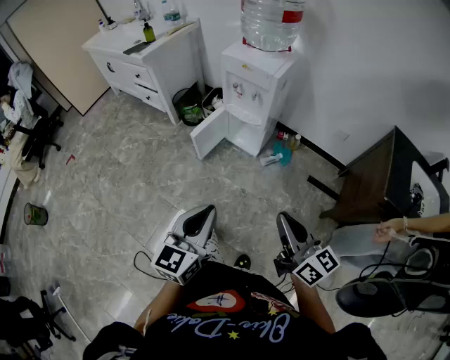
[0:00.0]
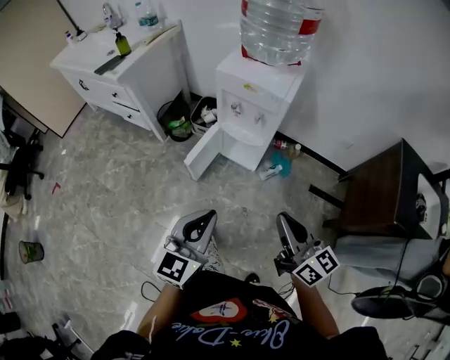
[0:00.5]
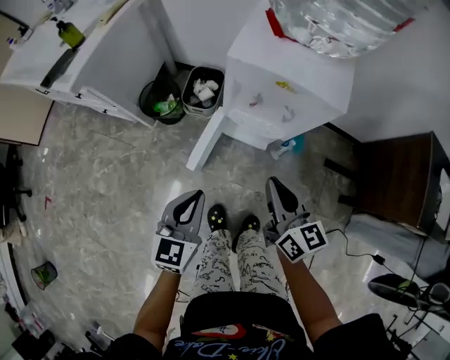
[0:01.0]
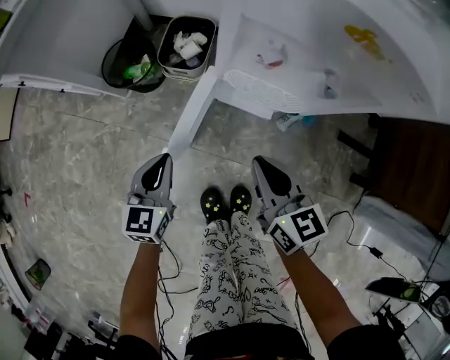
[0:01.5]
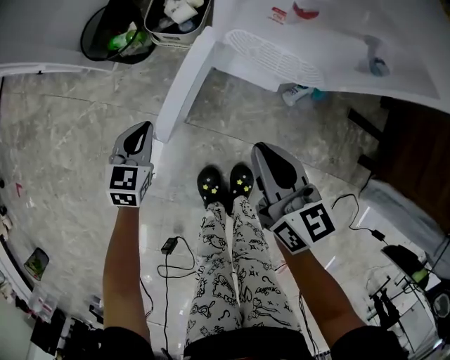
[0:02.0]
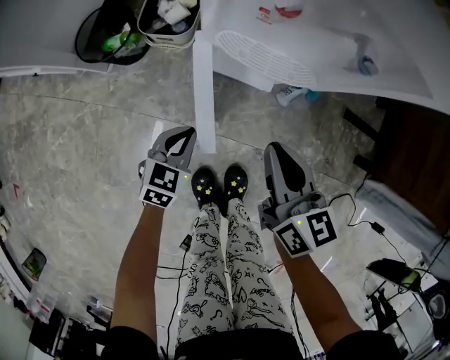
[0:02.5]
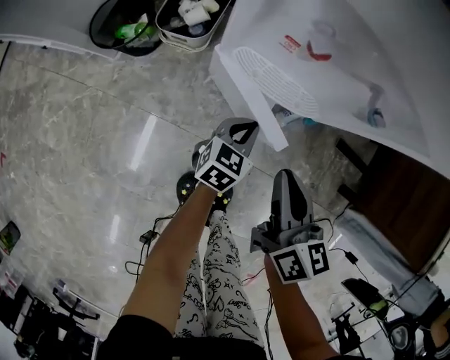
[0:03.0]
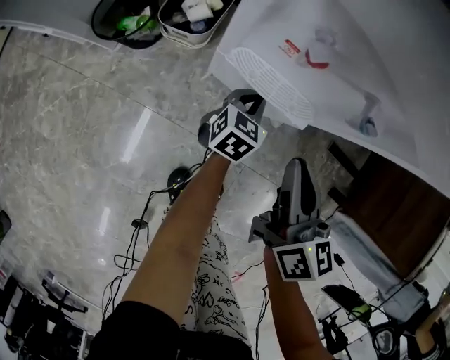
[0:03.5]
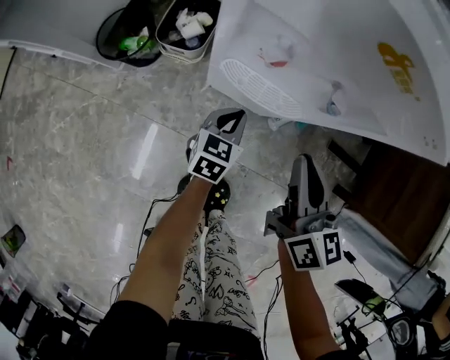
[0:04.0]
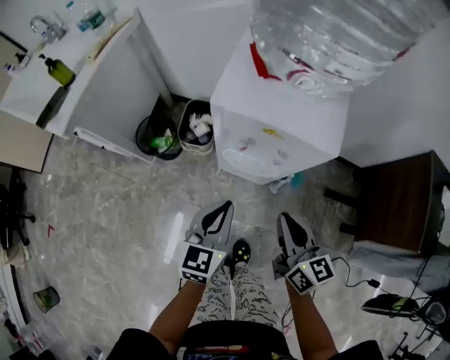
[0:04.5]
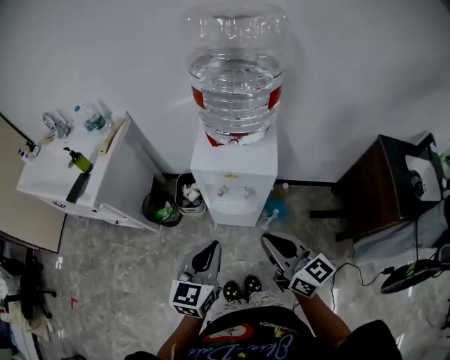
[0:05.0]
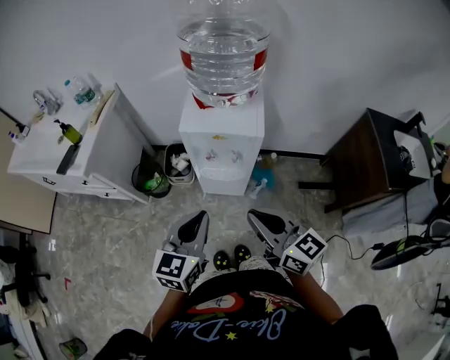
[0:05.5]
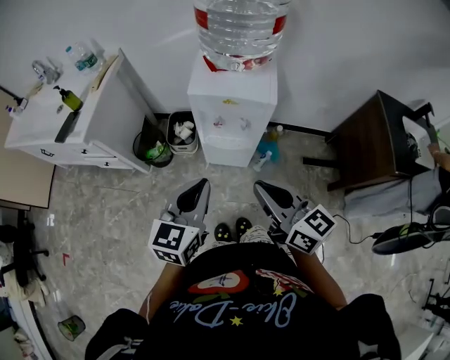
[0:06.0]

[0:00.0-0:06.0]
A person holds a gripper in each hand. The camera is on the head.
0:00.0 to 0:02.0: The two grippers travel together, forward and to the left, about 50 cm. Both grippers travel together downward, roughly 50 cm. The right gripper swivels approximately 30 degrees. Meanwhile the left gripper tilts its fingers approximately 30 degrees downward.
0:02.0 to 0:04.0: The left gripper heads to the right and forward, covering approximately 25 cm, while the right gripper travels to the right, upward and forward by about 15 cm.
0:04.0 to 0:06.0: Both grippers travel together upward and backward, some 50 cm. The right gripper rotates about 20 degrees, while the left gripper swivels roughly 20 degrees.

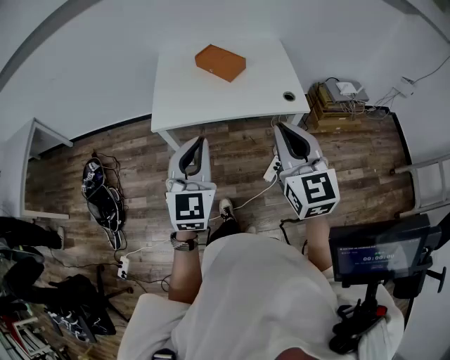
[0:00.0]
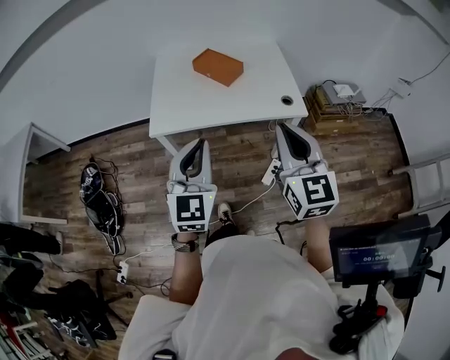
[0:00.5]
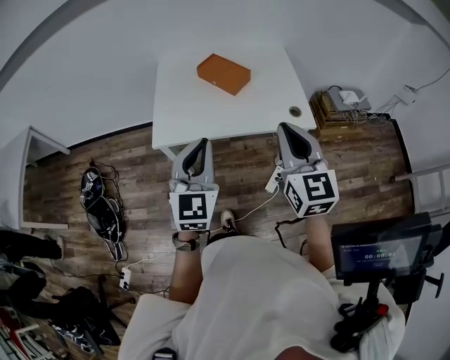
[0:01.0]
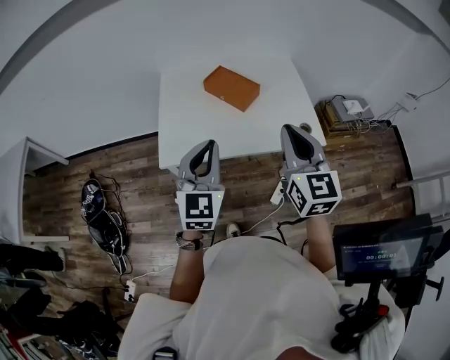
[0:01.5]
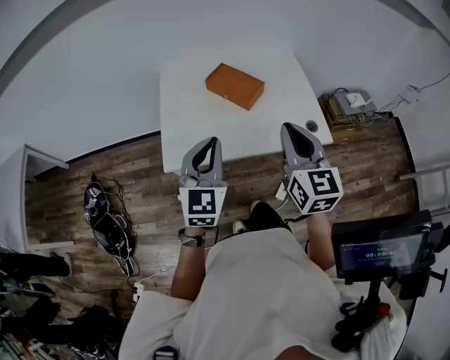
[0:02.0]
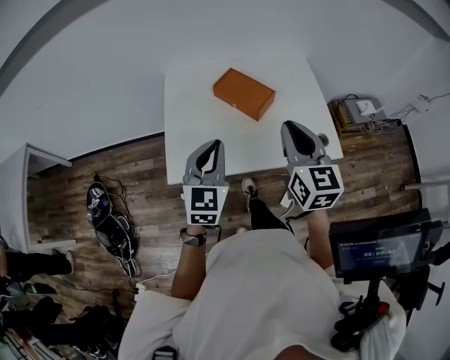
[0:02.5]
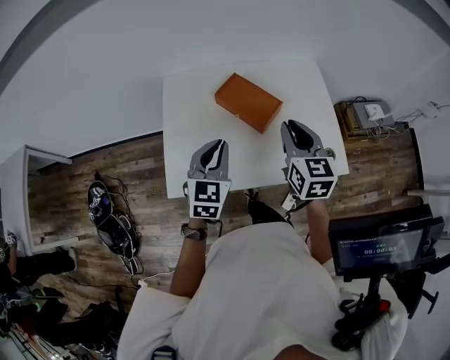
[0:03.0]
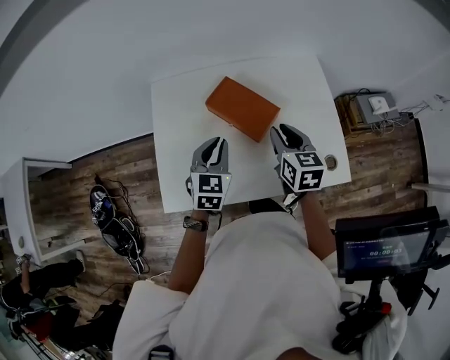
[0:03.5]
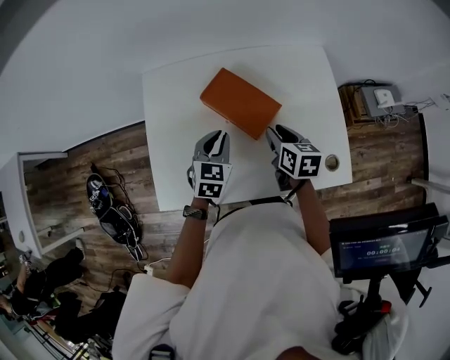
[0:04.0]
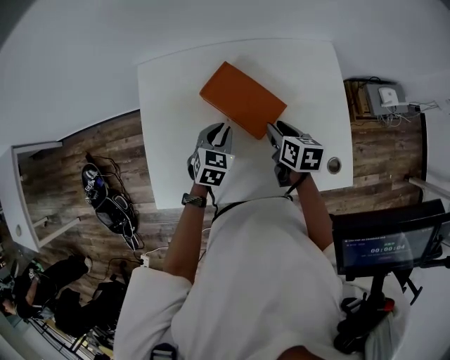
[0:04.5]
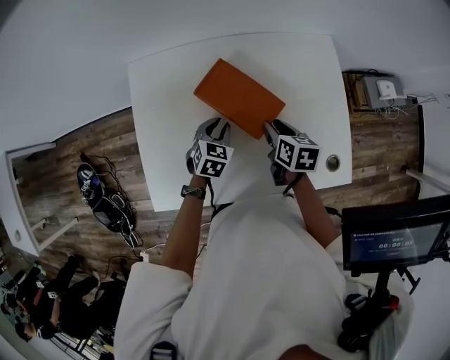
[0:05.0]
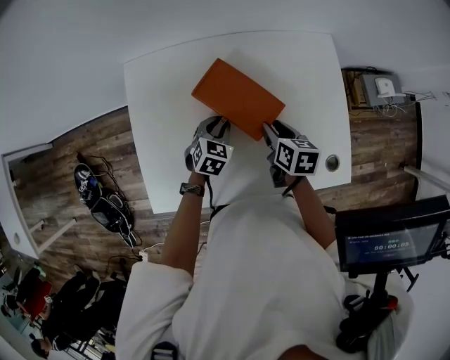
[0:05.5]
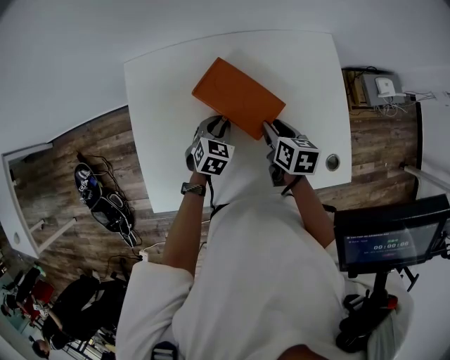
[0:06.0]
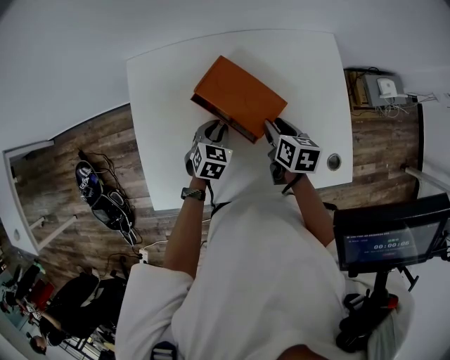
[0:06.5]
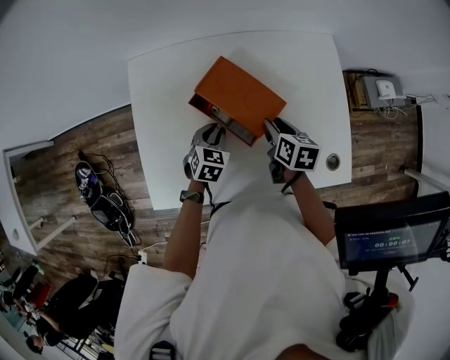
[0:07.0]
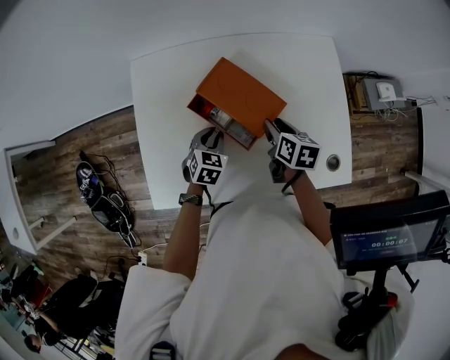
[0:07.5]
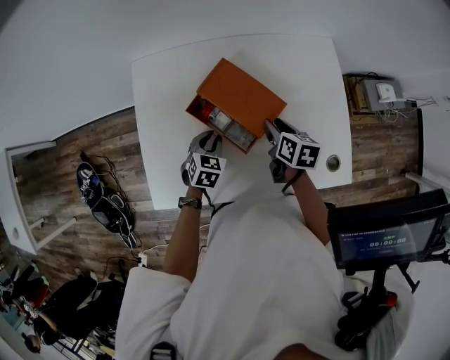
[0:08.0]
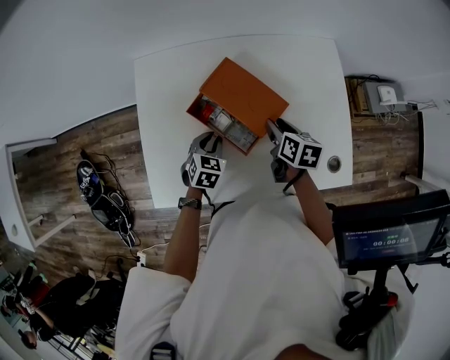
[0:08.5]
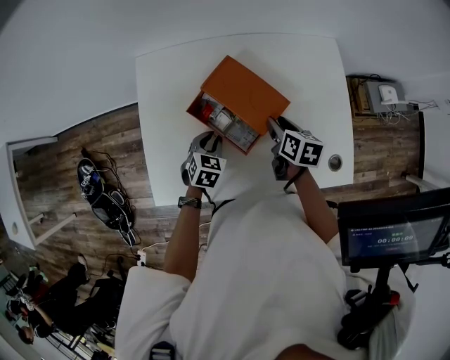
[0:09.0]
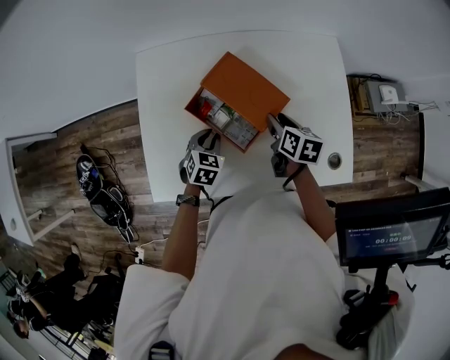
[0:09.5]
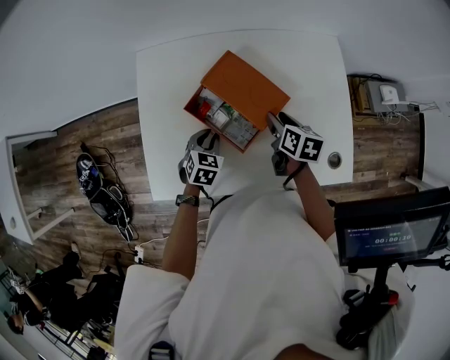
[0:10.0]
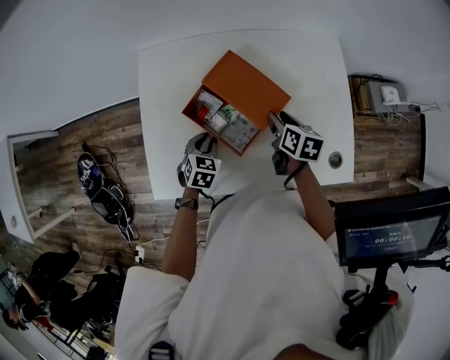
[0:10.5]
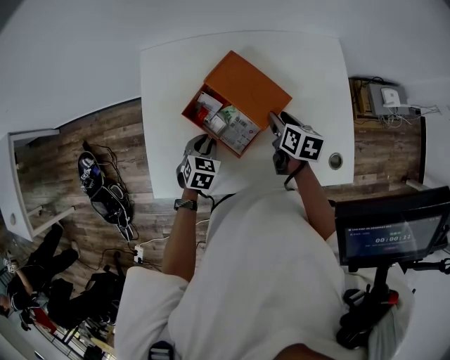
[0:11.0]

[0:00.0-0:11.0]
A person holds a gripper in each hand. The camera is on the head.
0:00.0 to 0:02.0: Both grippers move forward, roughly 20 cm.
0:02.0 to 0:03.5: The grippers both shift forward and downward by roughly 30 cm. The left gripper rotates roughly 20 degrees, while the right gripper changes its angle by approximately 30 degrees, and opens.
0:03.5 to 0:05.5: Both grippers move downward, approximately 15 cm. The left gripper swivels roughly 20 degrees. The right gripper changes its angle by roughly 20 degrees.
0:05.5 to 0:07.5: There are only small adjustments of the grippers.
0:07.5 to 0:11.0: There are only small adjustments of the grippers.

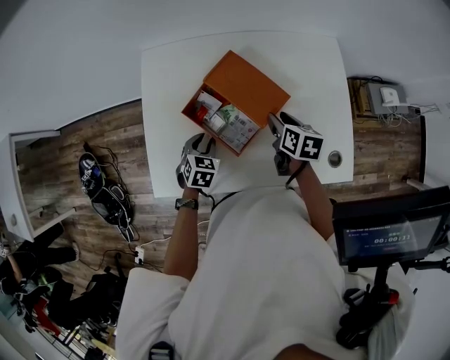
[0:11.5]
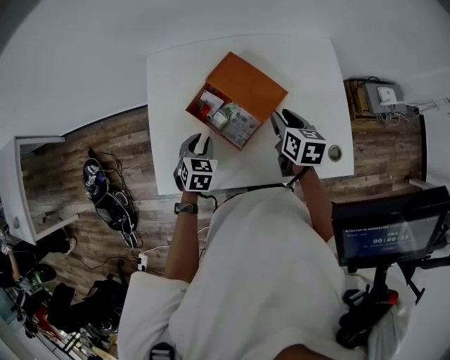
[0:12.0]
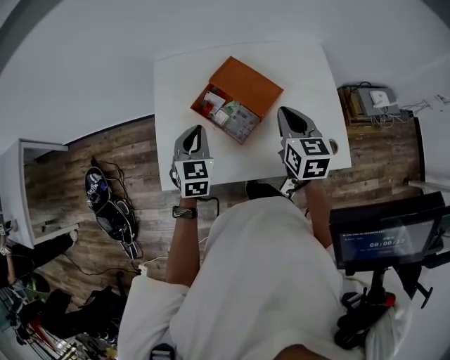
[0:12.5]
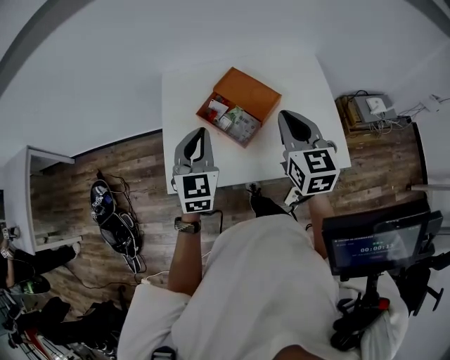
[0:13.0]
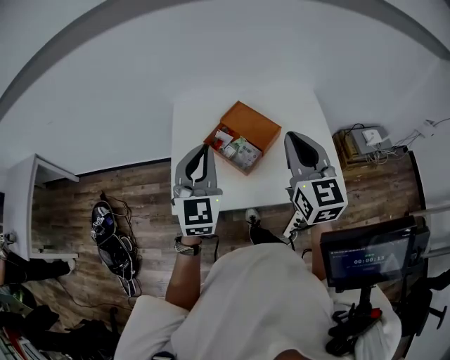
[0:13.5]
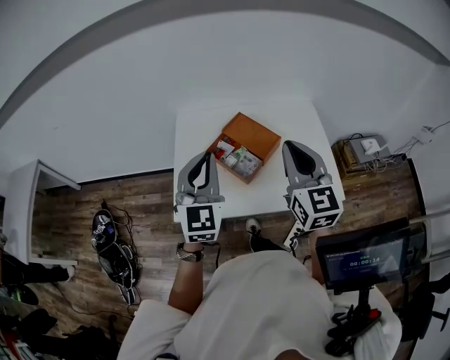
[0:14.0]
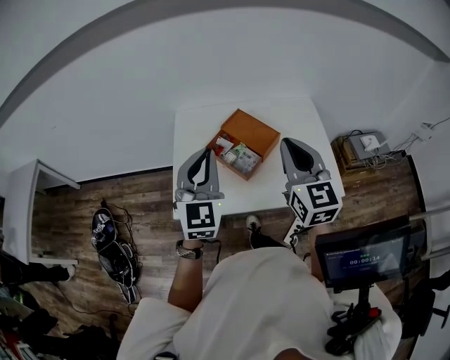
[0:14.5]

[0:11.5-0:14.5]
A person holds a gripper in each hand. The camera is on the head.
0:11.5 to 0:13.0: The left gripper moves upward, some 30 cm, tilts its fingers about 40 degrees upward, and closes its fingers. Meanwhile the right gripper travels upward and backward by approximately 30 cm, angles its fingers upward, by approximately 30 degrees, and closes up.
0:13.0 to 0:14.5: Both grippers move upward, roughly 10 cm.

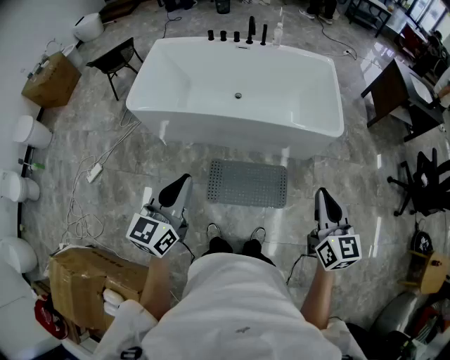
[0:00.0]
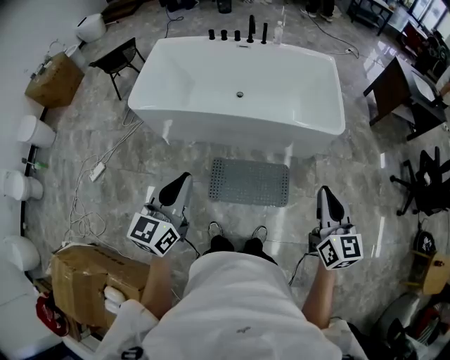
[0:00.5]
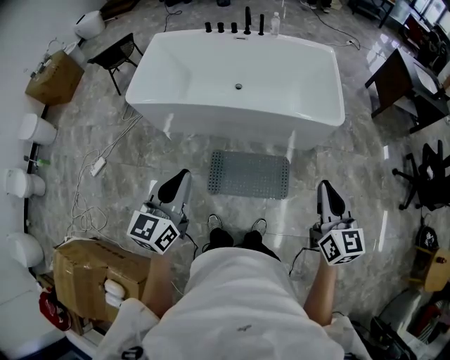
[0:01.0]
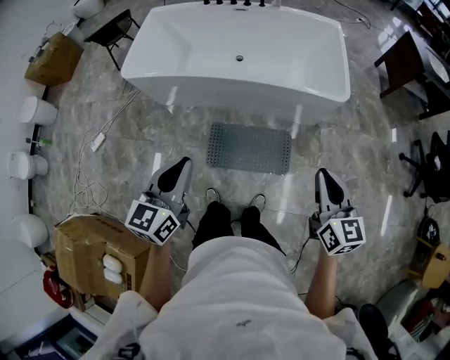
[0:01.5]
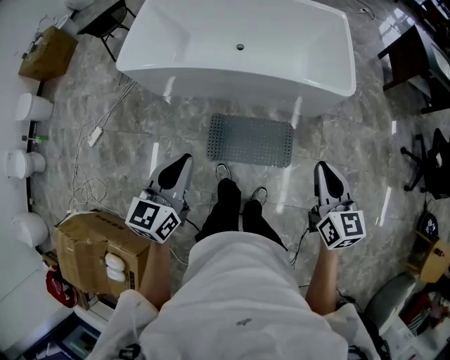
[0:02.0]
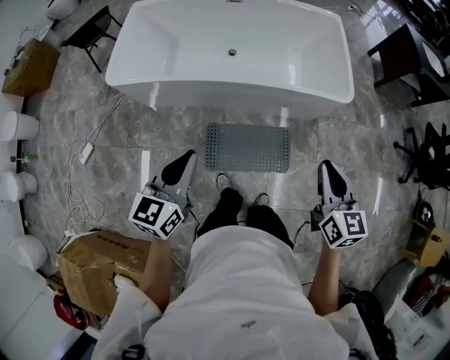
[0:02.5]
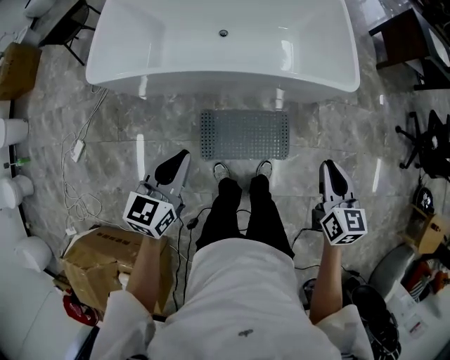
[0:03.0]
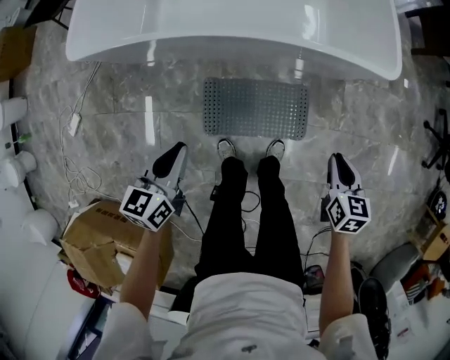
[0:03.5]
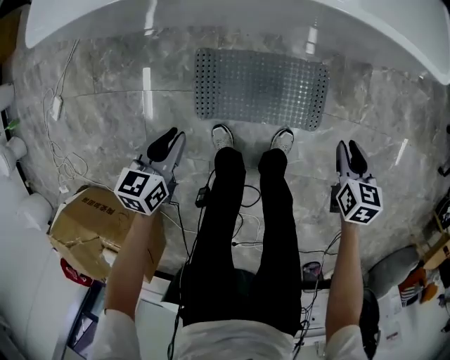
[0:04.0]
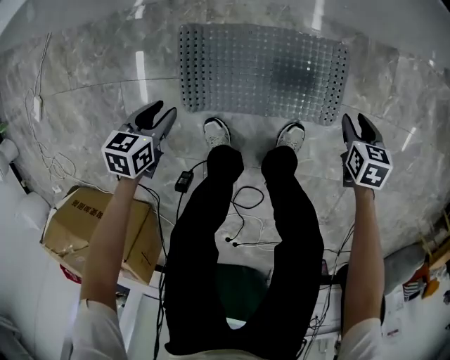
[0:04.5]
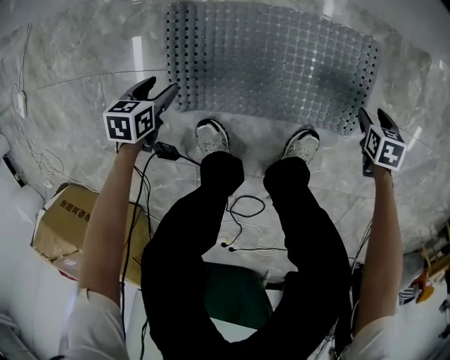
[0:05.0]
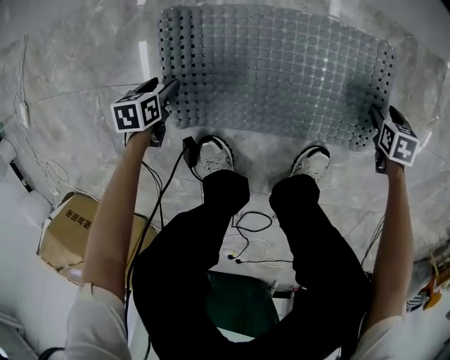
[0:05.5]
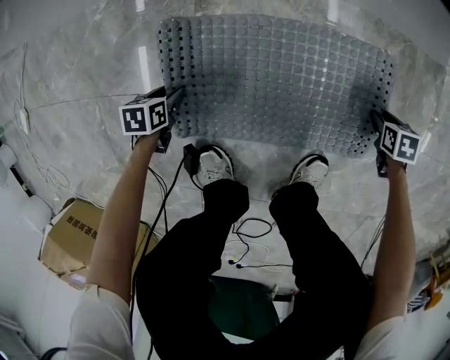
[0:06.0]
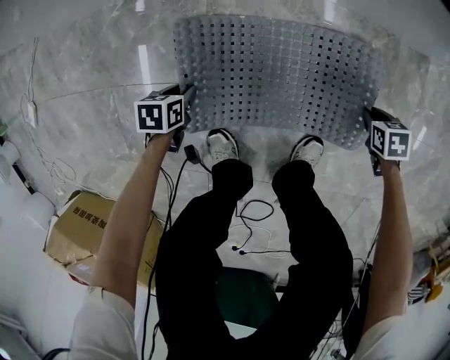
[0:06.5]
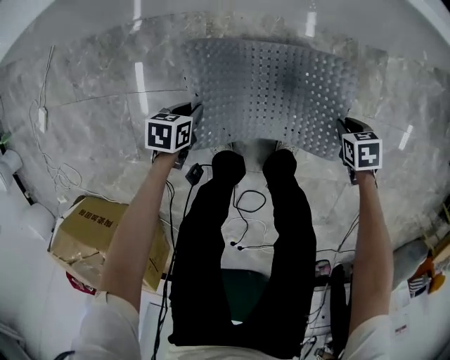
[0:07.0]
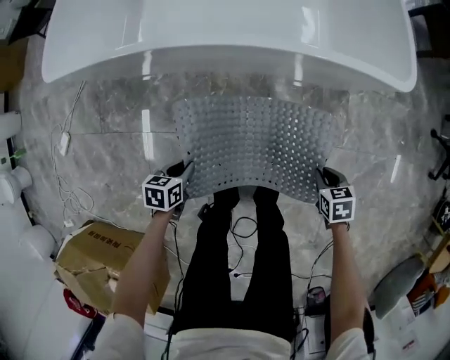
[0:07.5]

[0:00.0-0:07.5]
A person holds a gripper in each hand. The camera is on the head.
0:00.0 to 0:02.0: The right gripper heads downward and to the right, covering roughly 10 cm; the left gripper moves to the right and downward, roughly 10 cm.
0:02.0 to 0:04.0: The grippers both shift downward by some 50 cm. The right gripper tips its fingers downward by approximately 40 degrees. The left gripper turns by roughly 30 degrees.
0:04.0 to 0:05.5: Both grippers travel together downward, approximately 50 cm. The right gripper rotates about 20 degrees, and opens. The left gripper rotates some 30 degrees, and opens up.
0:05.5 to 0:07.5: The two grippers go some 50 cm upward. The right gripper closes up; the left gripper closes.
